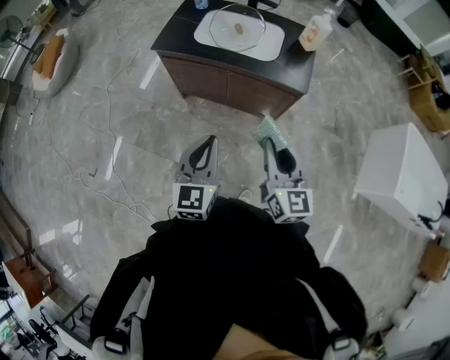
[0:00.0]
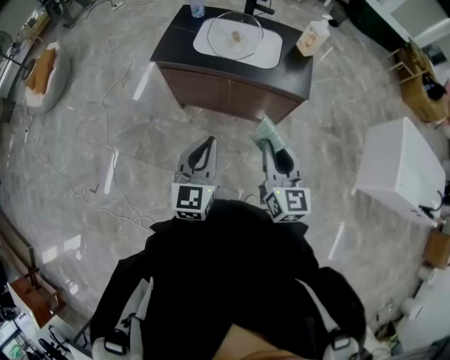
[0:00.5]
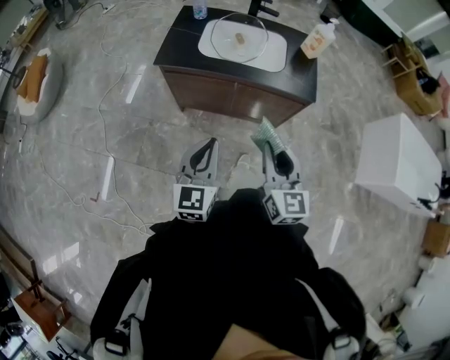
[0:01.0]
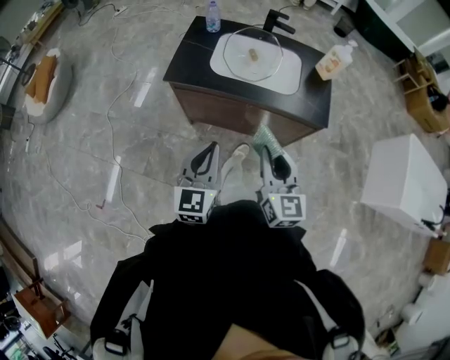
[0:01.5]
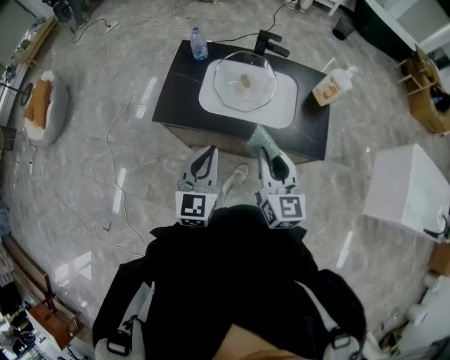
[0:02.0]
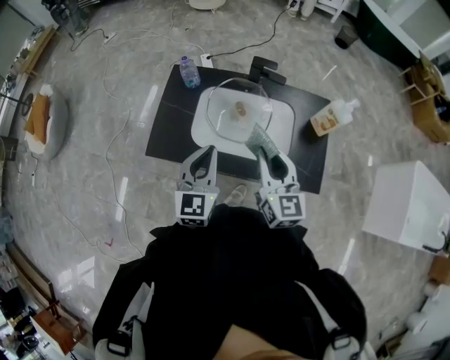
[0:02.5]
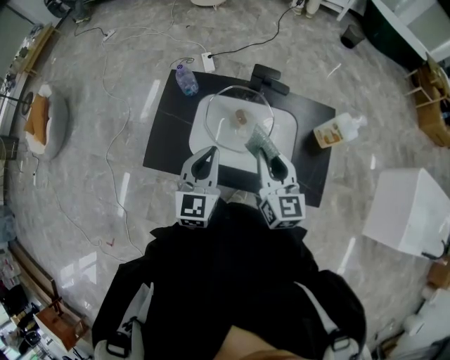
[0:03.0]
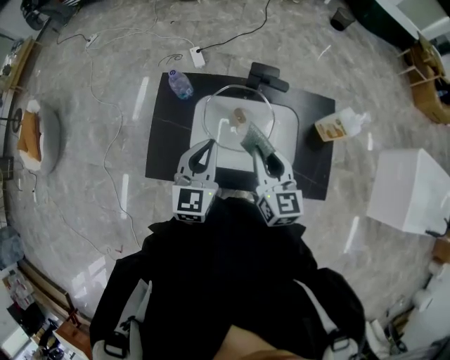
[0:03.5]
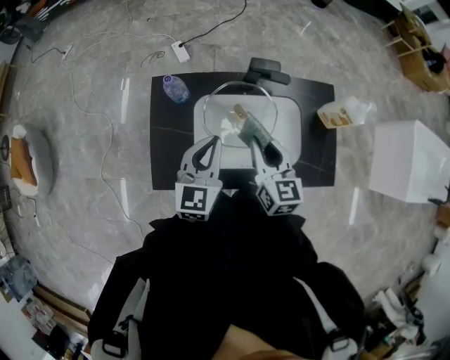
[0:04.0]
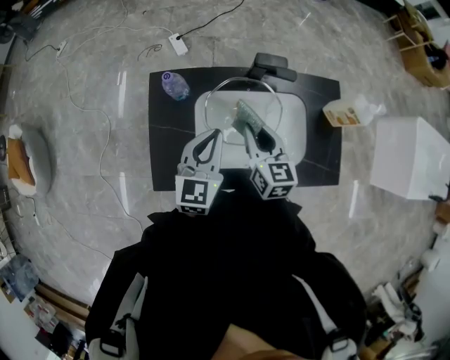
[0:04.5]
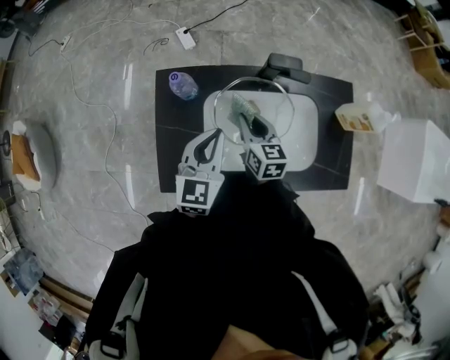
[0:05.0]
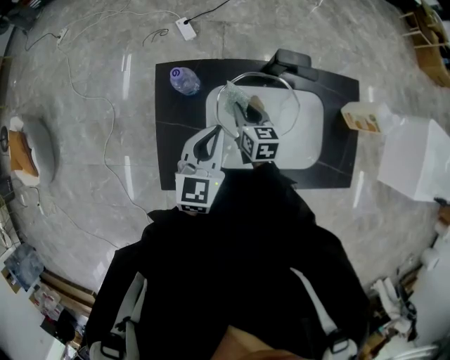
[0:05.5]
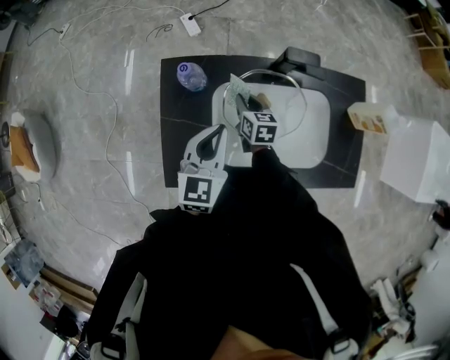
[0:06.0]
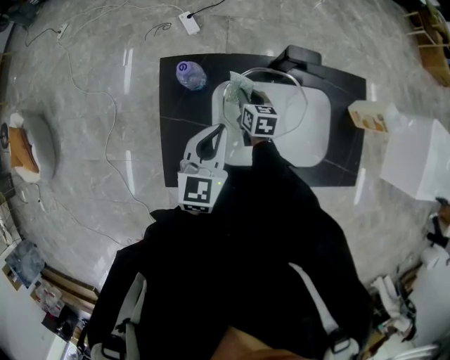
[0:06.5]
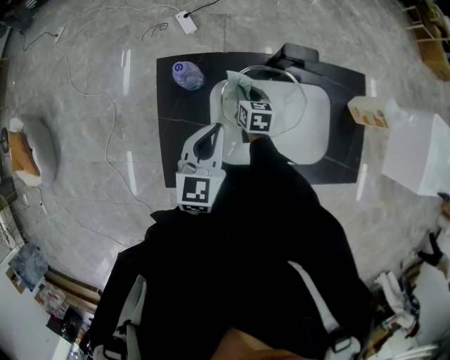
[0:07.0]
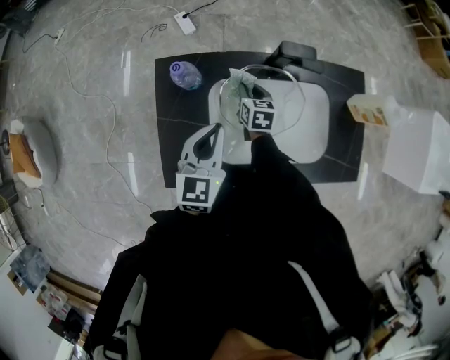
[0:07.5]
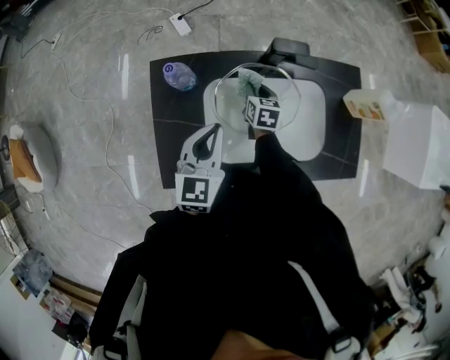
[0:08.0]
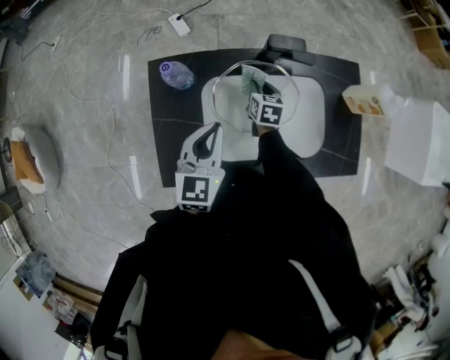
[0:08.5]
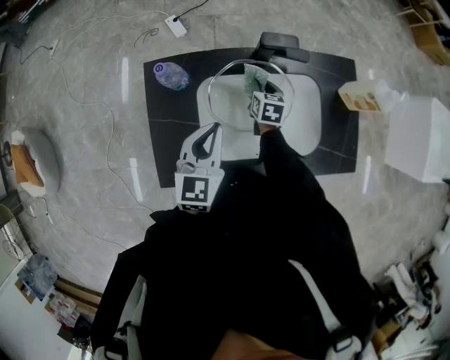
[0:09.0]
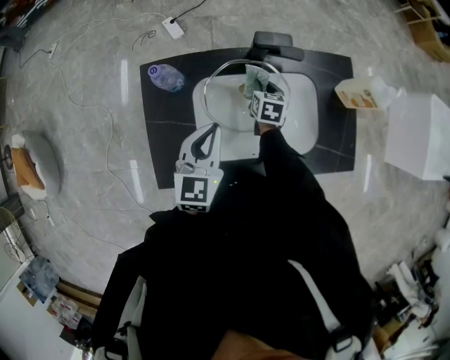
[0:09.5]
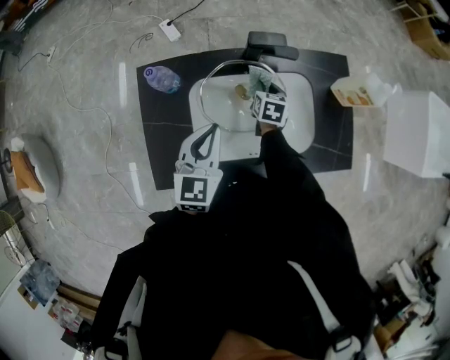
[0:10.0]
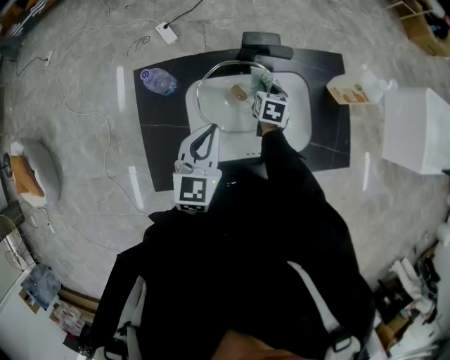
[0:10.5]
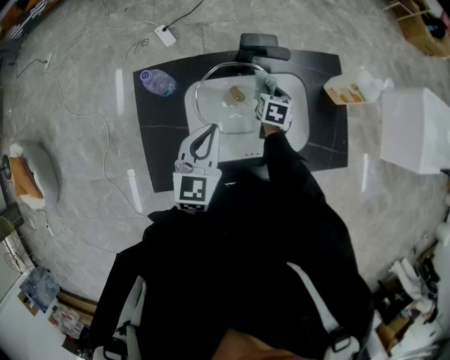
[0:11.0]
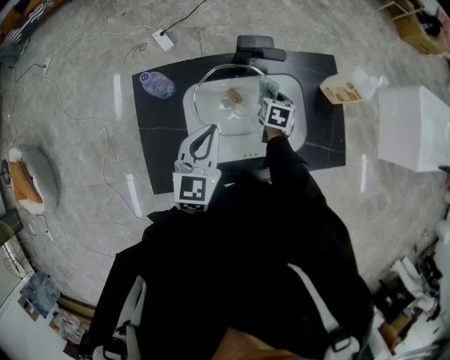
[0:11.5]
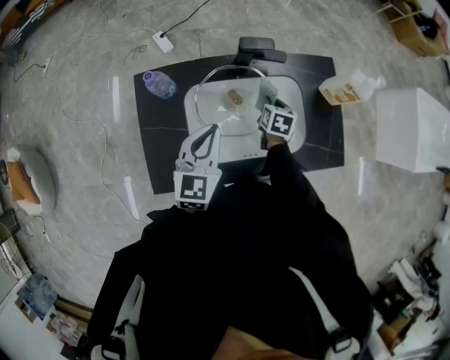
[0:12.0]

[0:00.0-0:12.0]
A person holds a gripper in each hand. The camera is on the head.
0:00.0 to 0:02.0: The right gripper goes some 35 cm forward and to the left. Meanwhile the left gripper goes roughly 30 cm forward.
0:02.0 to 0:04.0: The two grippers go some 30 cm forward.
0:04.0 to 0:06.0: The left gripper travels downward and to the left by some 10 cm. The right gripper shifts roughly 30 cm downward, forward and to the left, and rotates approximately 20 degrees.
0:06.0 to 0:08.0: The right gripper moves to the right, roughly 5 cm.
0:08.0 to 0:10.0: The right gripper is displaced to the right by about 10 cm.
0:10.0 to 0:12.0: The right gripper goes approximately 5 cm to the right.

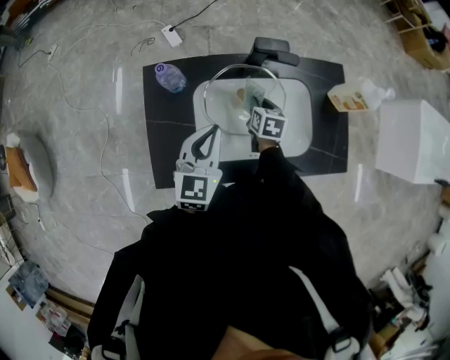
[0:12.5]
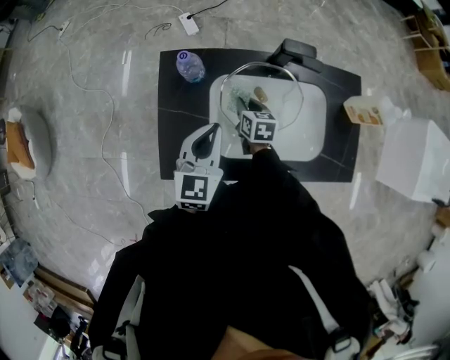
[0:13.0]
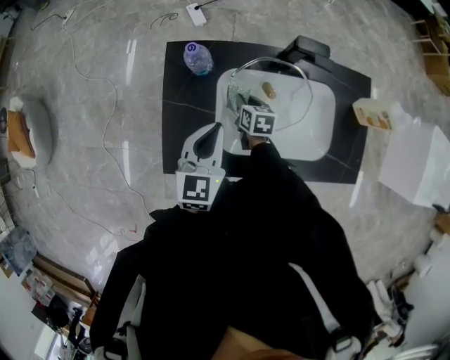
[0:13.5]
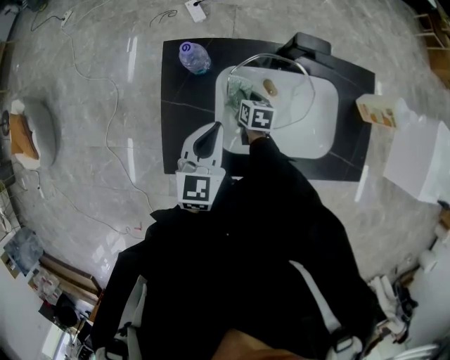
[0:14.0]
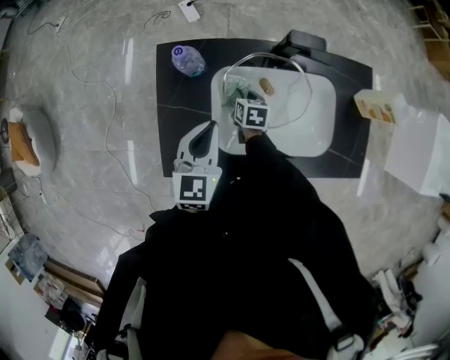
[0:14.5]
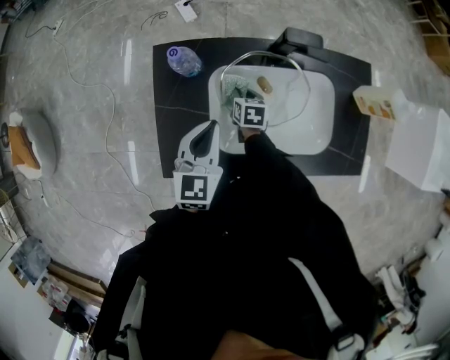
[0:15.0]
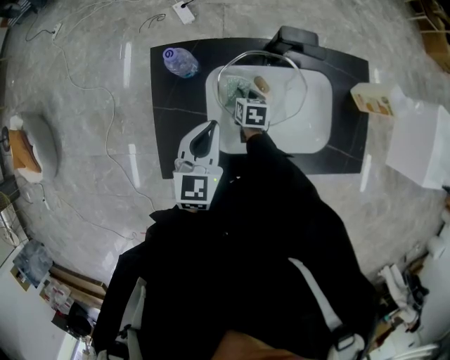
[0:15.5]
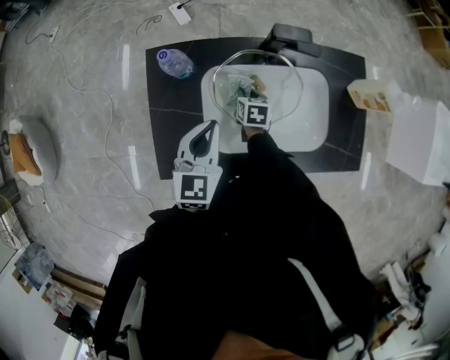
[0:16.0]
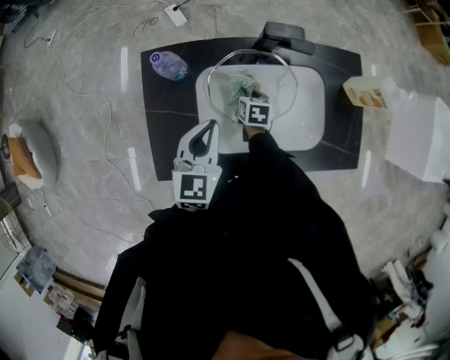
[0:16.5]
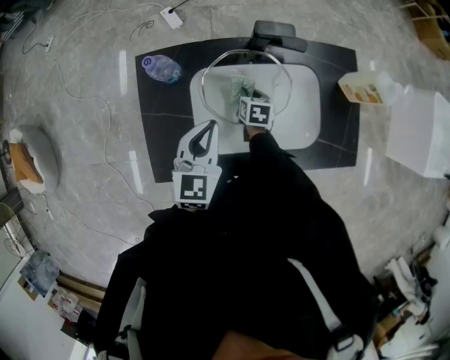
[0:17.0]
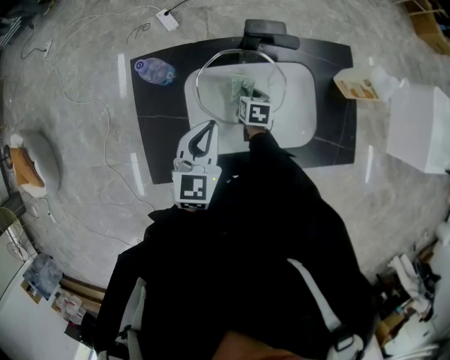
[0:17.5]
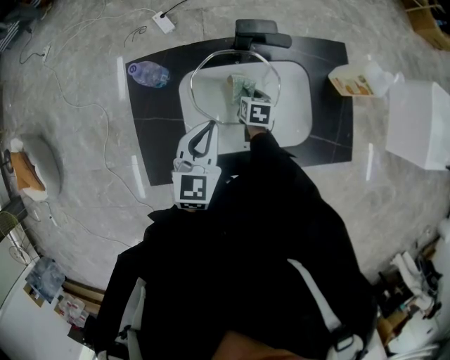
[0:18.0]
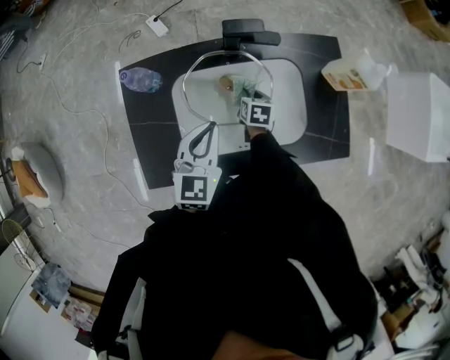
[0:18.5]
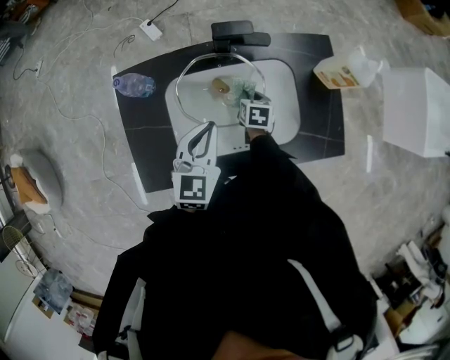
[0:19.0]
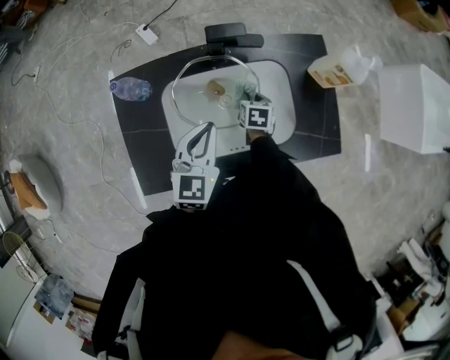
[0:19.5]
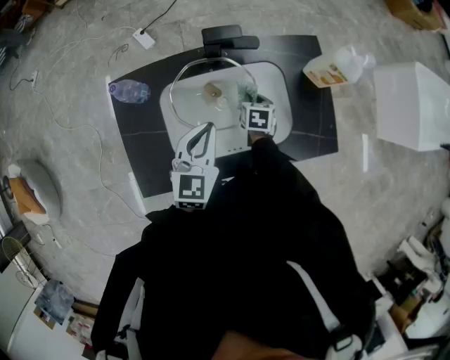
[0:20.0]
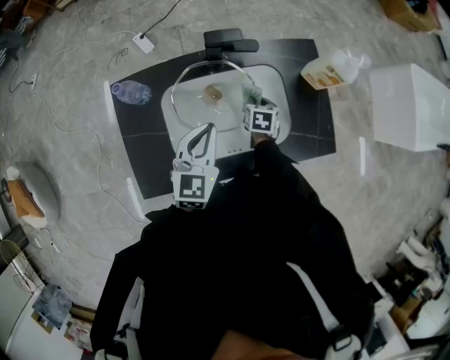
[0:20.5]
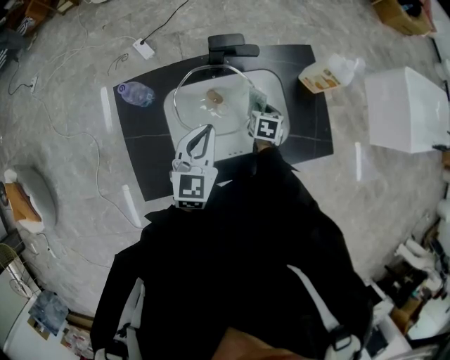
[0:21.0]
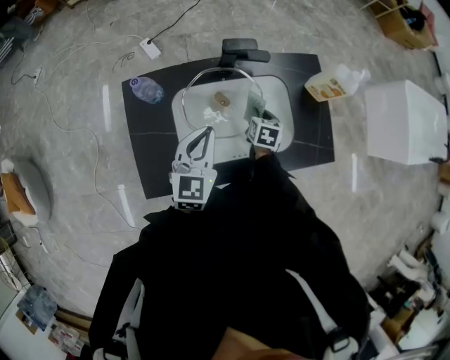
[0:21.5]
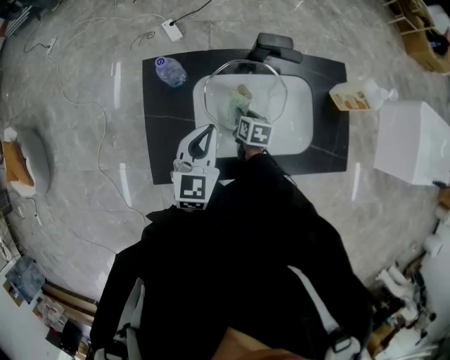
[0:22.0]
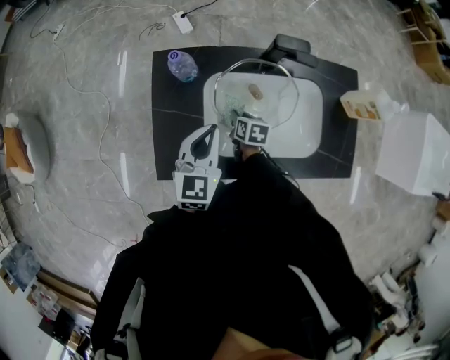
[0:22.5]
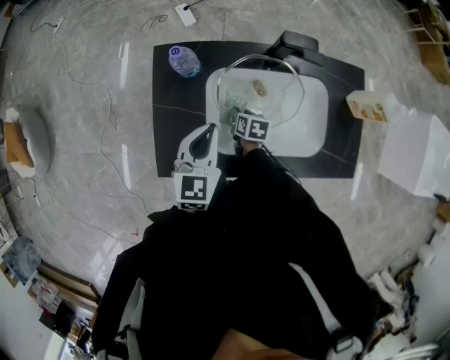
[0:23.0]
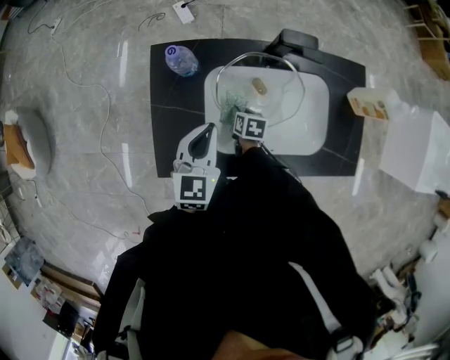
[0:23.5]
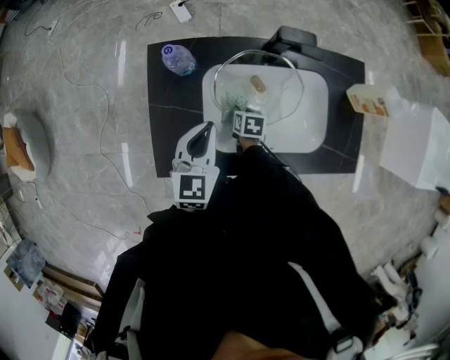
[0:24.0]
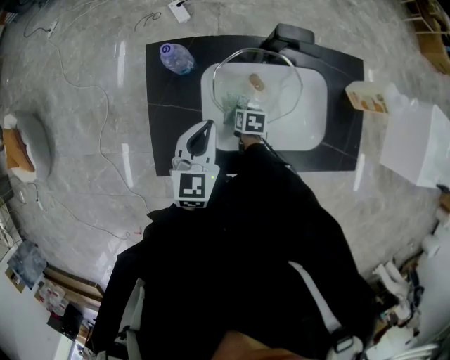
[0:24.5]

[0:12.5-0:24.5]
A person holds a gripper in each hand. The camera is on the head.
0:12.5 to 0:14.5: The right gripper shifts some 15 cm to the left and downward, while the left gripper goes approximately 5 cm to the left.
0:14.5 to 0:16.5: The right gripper heads to the right, covering some 5 cm.
0:16.5 to 0:18.5: Both grippers travel together to the right, roughly 10 cm.
0:18.5 to 0:20.5: The right gripper is displaced to the right by approximately 5 cm.
0:20.5 to 0:22.5: The left gripper ends up some 10 cm from where it was. The right gripper shifts by roughly 20 cm, and swivels some 20 degrees.
0:22.5 to 0:24.5: The right gripper shifts by roughly 5 cm.

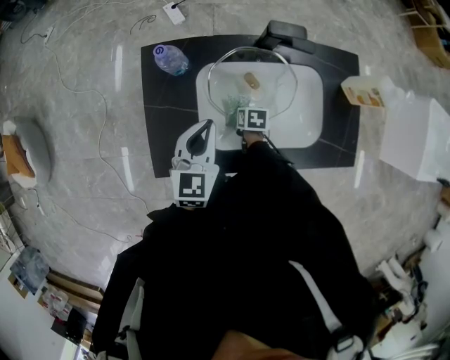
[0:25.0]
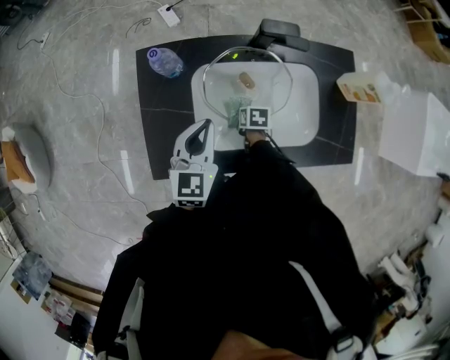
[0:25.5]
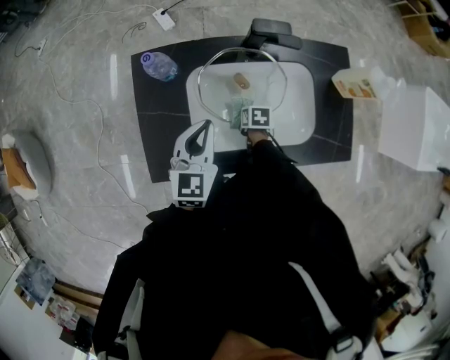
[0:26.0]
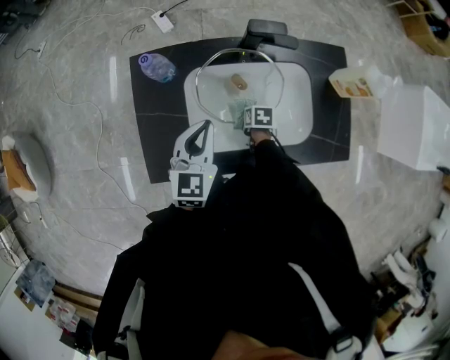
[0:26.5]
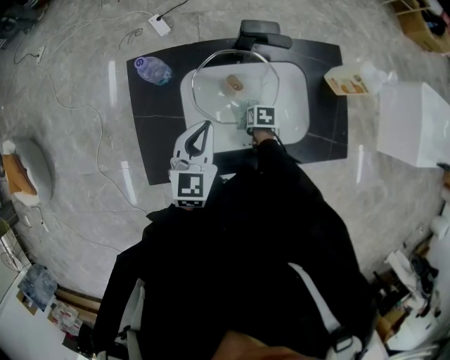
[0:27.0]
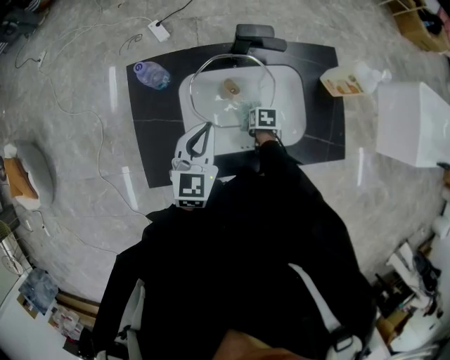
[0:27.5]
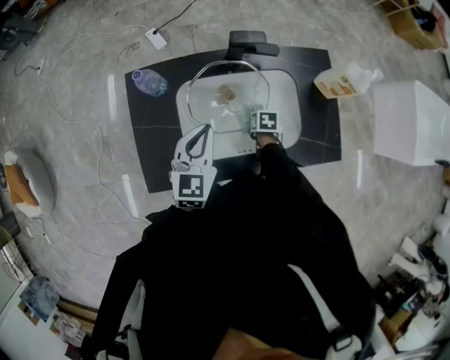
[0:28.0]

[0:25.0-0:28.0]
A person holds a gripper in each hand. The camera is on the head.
0:25.0 to 0:26.5: The right gripper ends up roughly 5 cm from where it was.
0:26.5 to 0:28.0: The right gripper changes place by some 5 cm.
